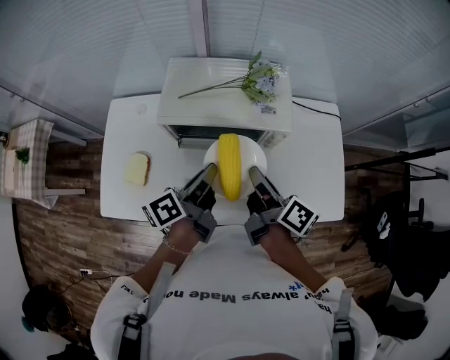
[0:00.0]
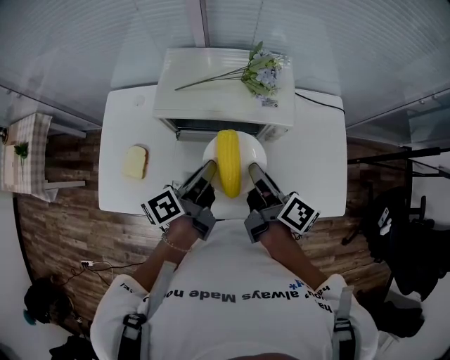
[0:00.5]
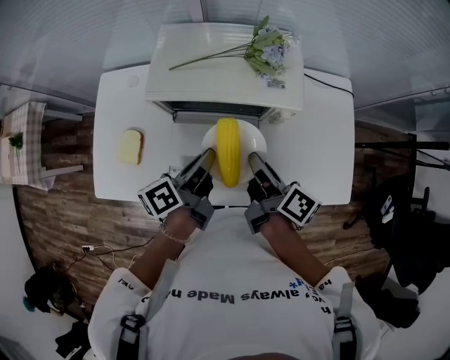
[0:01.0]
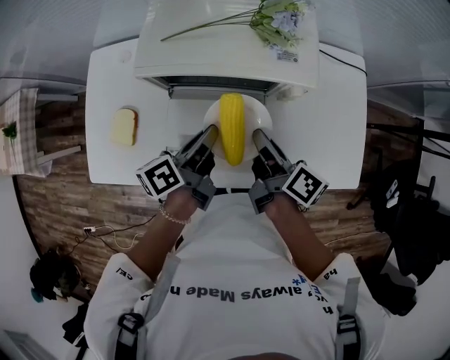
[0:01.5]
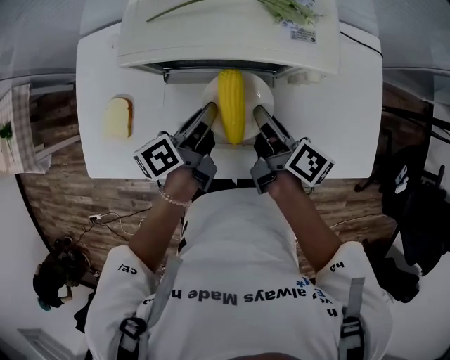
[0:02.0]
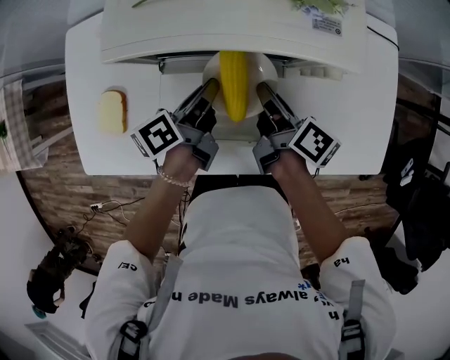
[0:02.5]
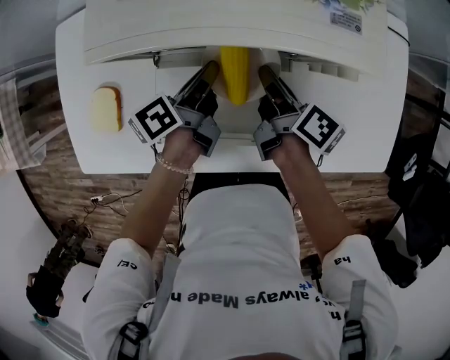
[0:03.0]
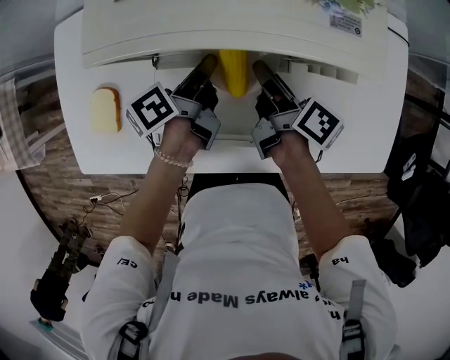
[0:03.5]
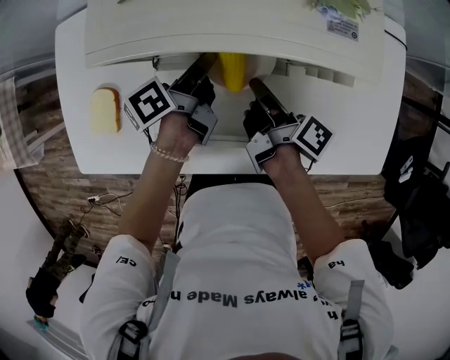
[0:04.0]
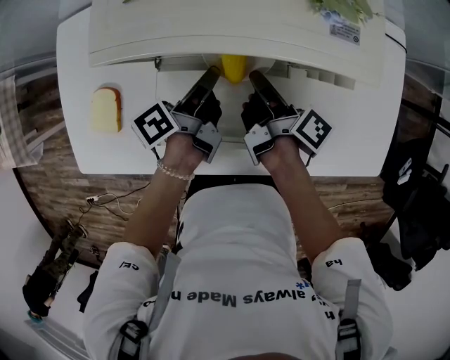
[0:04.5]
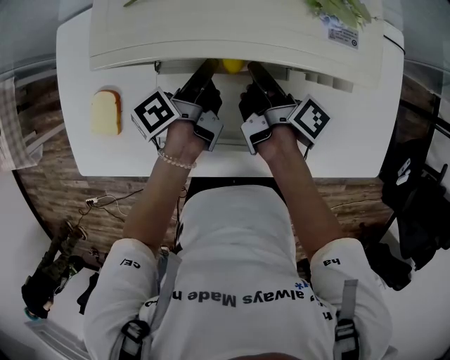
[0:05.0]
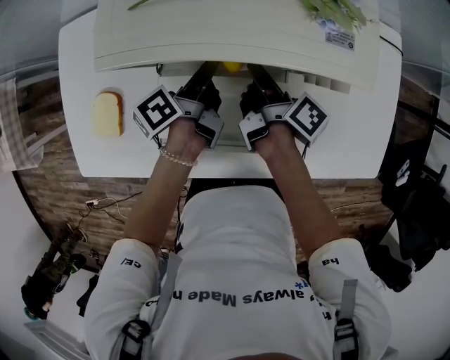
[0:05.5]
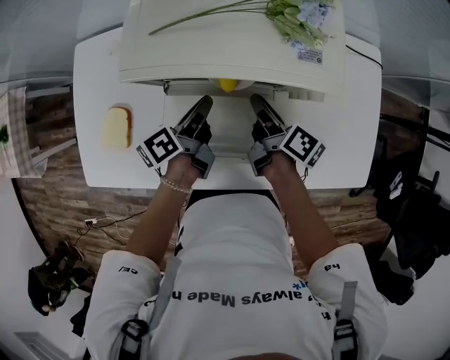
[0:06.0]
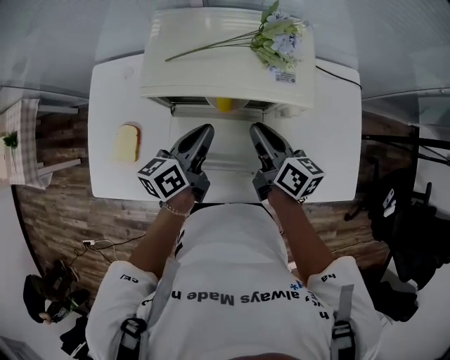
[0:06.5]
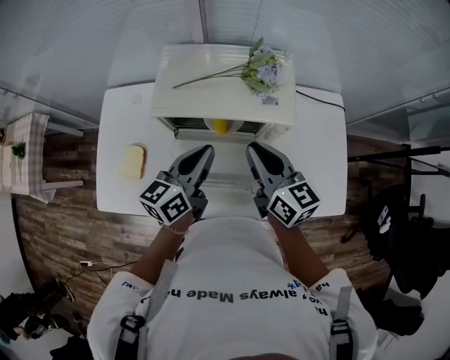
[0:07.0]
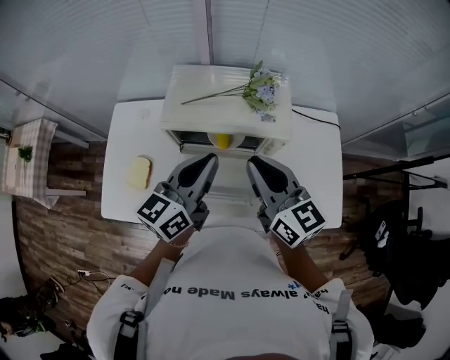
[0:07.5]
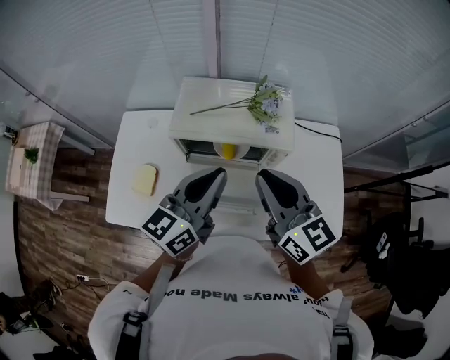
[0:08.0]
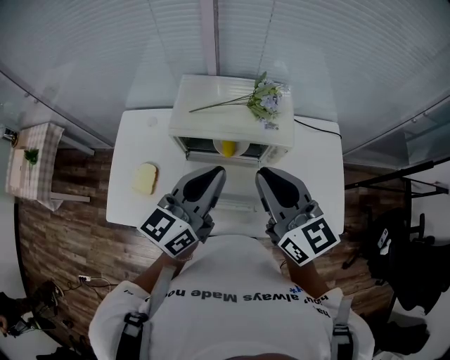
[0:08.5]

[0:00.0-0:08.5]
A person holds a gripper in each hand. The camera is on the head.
0:00.0 to 0:02.0: Both grippers travel together downward, approximately 15 cm.
0:02.0 to 0:04.0: The right gripper is displaced downward by about 10 cm, and rotates approximately 20 degrees. Meanwhile the left gripper shifts some 15 cm forward and downward.
0:04.0 to 0:06.5: The right gripper heads upward, covering approximately 15 cm, and twists about 50 degrees counterclockwise, seen from behind; the left gripper is displaced upward and backward by about 20 cm, and changes its angle by roughly 30 degrees.
0:06.5 to 0:08.5: Both grippers travel together upward, approximately 25 cm. The left gripper rotates roughly 30 degrees; the right gripper swivels approximately 40 degrees.

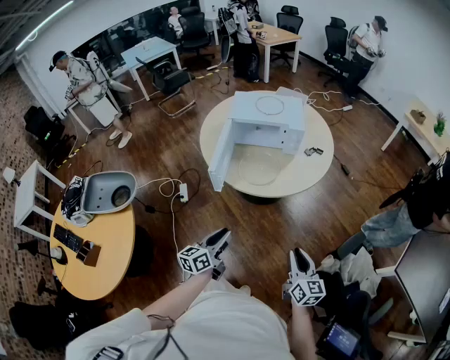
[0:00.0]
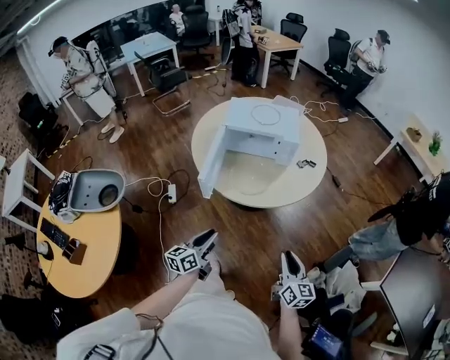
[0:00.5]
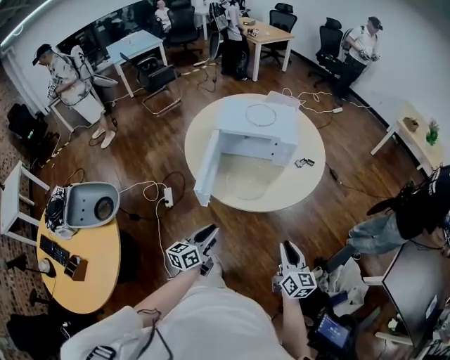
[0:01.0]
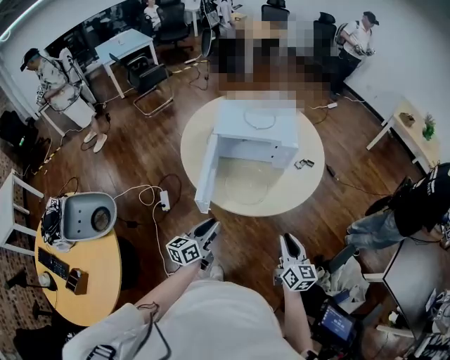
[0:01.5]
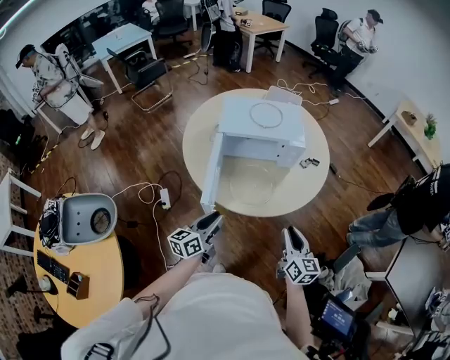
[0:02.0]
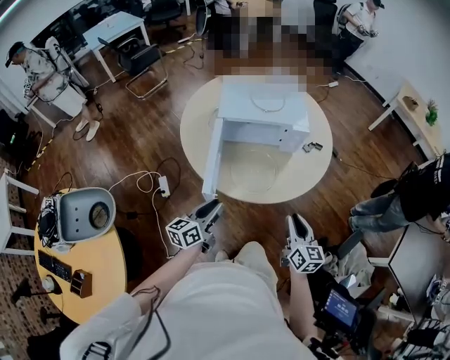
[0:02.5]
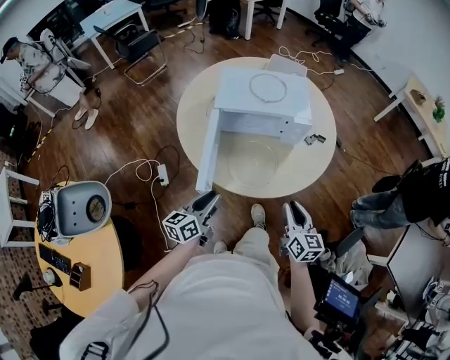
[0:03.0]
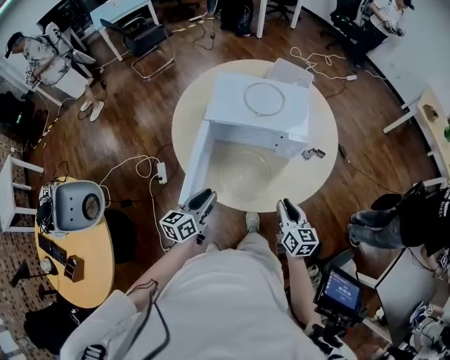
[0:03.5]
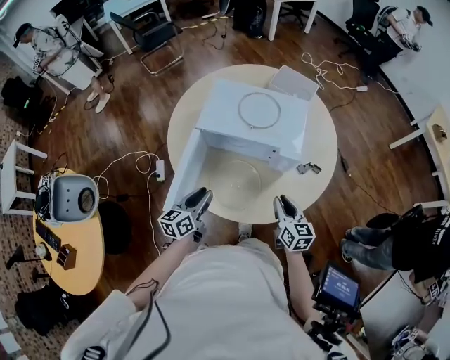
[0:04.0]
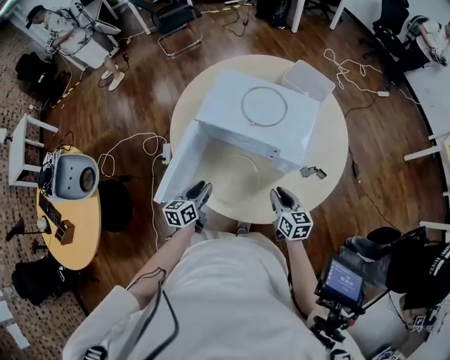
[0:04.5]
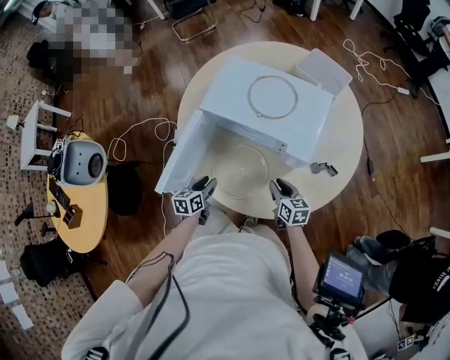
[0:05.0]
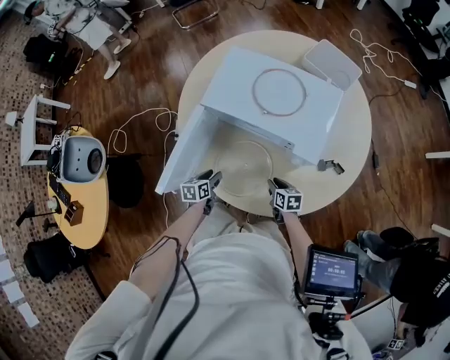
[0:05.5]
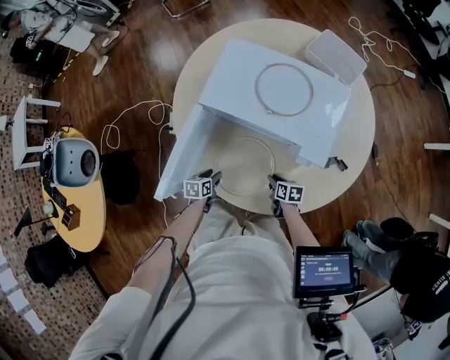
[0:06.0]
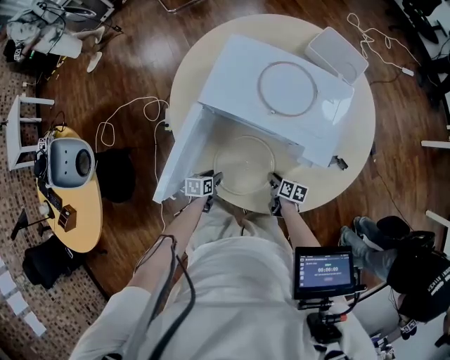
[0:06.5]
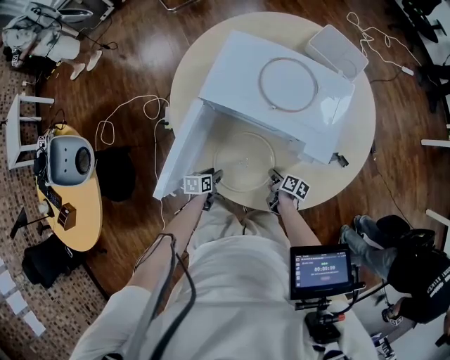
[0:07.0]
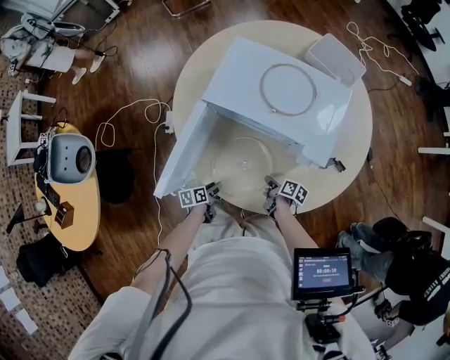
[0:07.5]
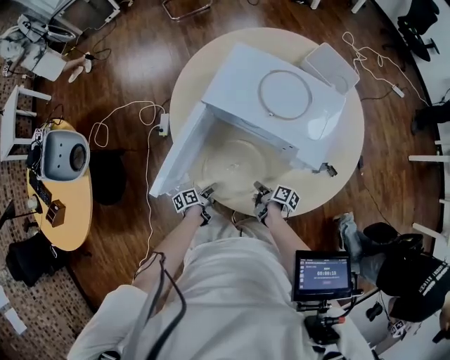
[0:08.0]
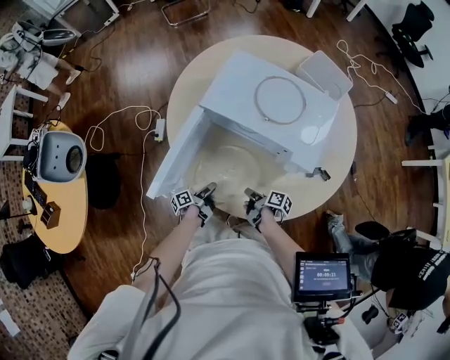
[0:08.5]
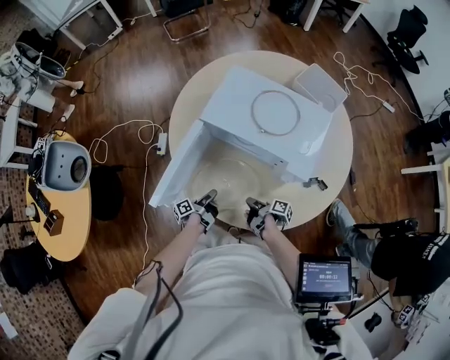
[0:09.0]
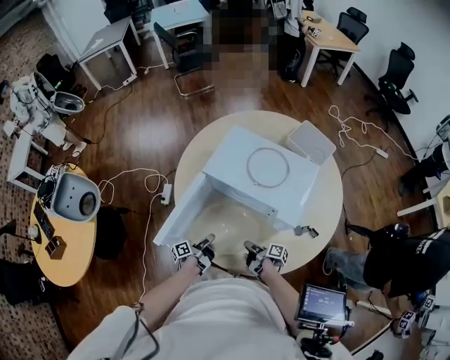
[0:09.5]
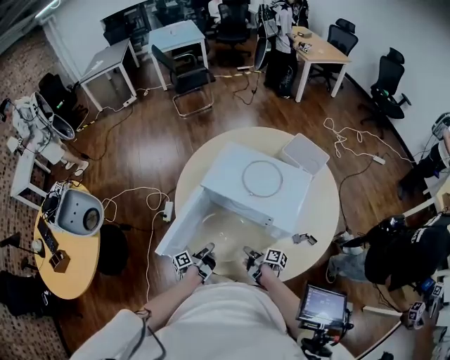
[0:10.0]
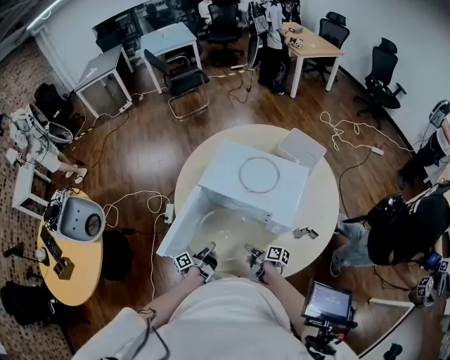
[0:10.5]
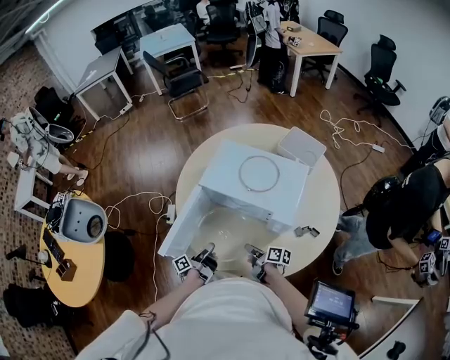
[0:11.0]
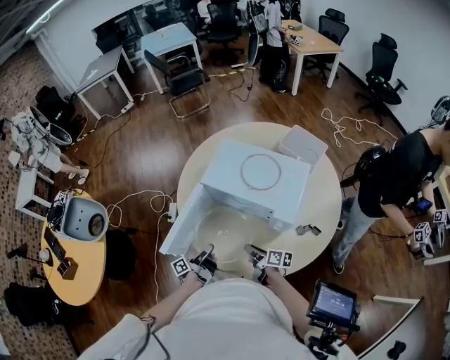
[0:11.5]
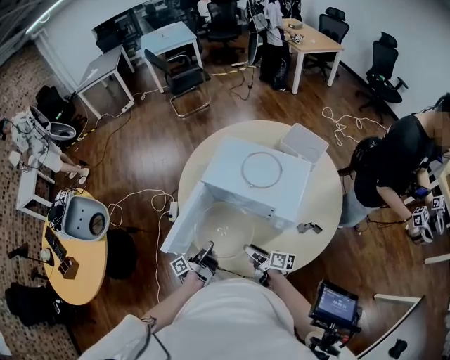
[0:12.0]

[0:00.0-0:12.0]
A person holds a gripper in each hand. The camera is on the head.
0:00.0 to 0:02.0: Both grippers travel together forward and to the left, approximately 25 cm.
0:02.0 to 0:04.0: Both grippers move forward, some 25 cm. The right gripper turns by approximately 20 degrees.
0:04.0 to 0:06.0: Both grippers move downward, roughly 30 cm. The right gripper turns by roughly 40 degrees, while the left gripper tilts its fingers approximately 40 degrees downward.
0:06.0 to 0:08.0: The left gripper goes about 5 cm backward, and twists approximately 40 degrees counterclockwise, seen from behind. Meanwhile the right gripper shifts by some 5 cm, and turns by some 40 degrees.
0:08.0 to 0:10.0: The left gripper is displaced upward by roughly 15 cm, turns by approximately 30 degrees, and closes; the right gripper is displaced upward by approximately 5 cm.
0:10.0 to 0:12.0: The two grippers go approximately 10 cm upward. The right gripper changes its angle by about 20 degrees, and opens up.

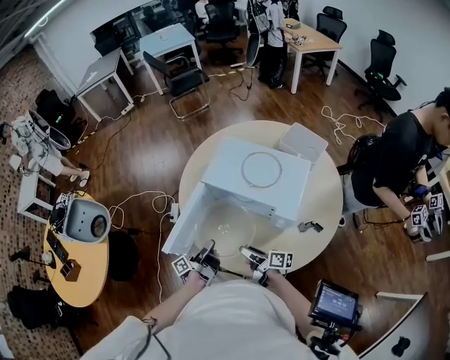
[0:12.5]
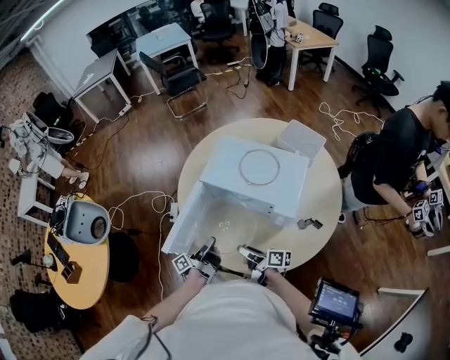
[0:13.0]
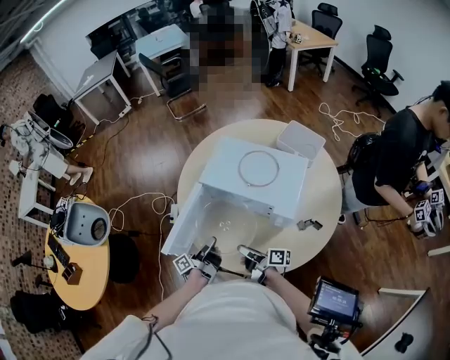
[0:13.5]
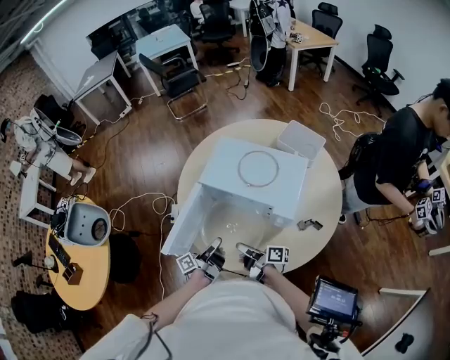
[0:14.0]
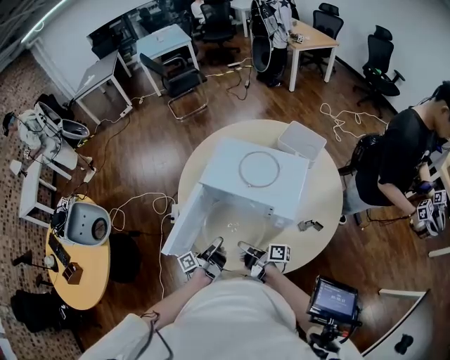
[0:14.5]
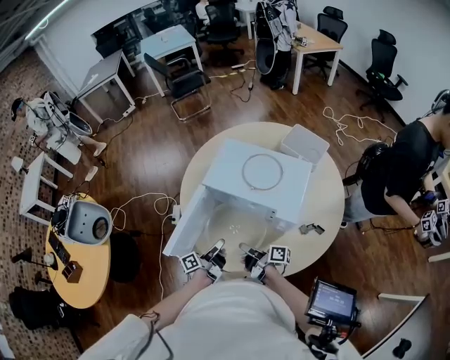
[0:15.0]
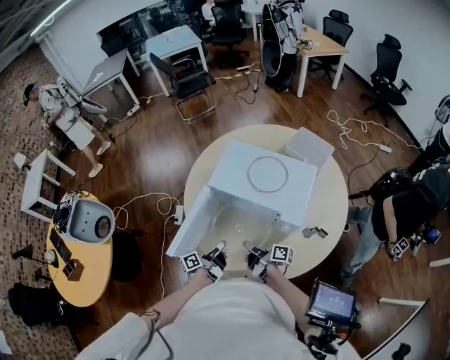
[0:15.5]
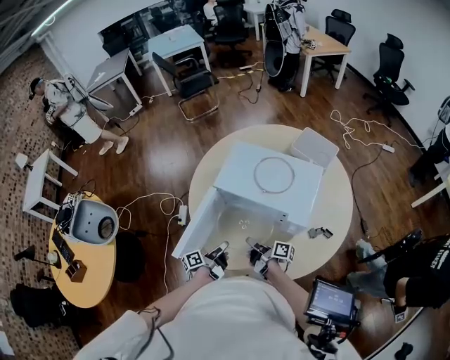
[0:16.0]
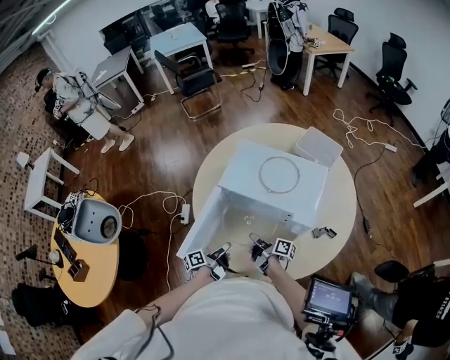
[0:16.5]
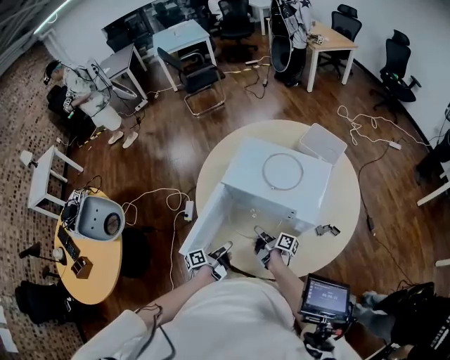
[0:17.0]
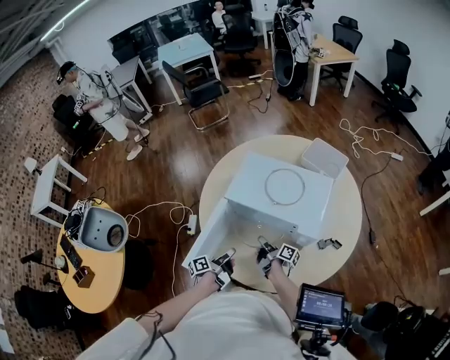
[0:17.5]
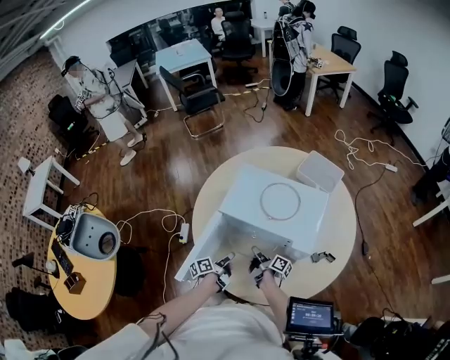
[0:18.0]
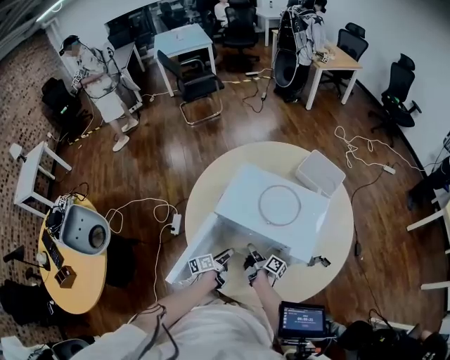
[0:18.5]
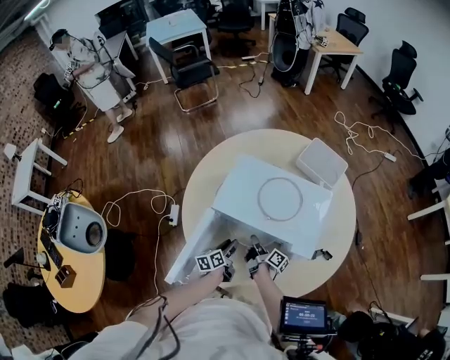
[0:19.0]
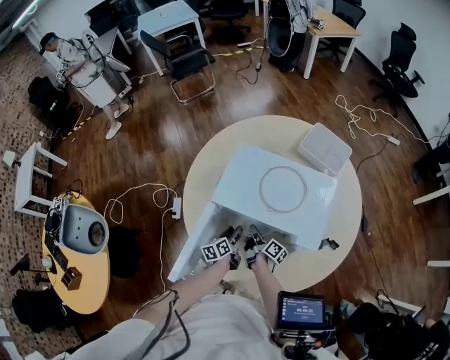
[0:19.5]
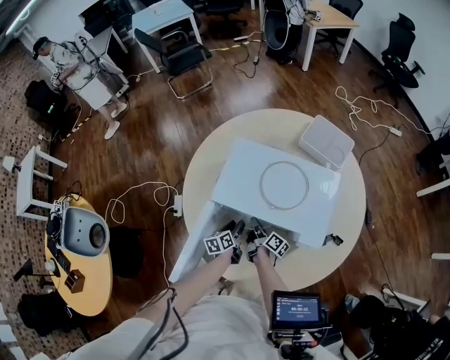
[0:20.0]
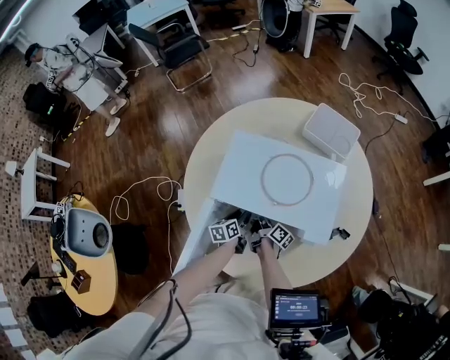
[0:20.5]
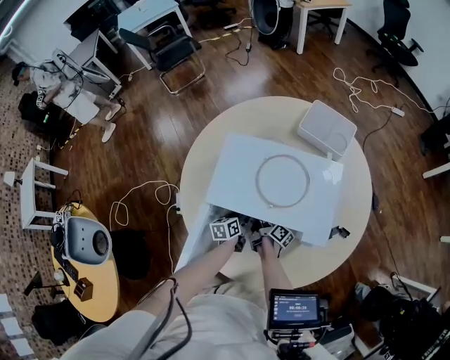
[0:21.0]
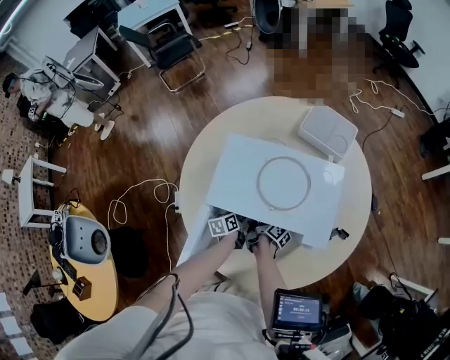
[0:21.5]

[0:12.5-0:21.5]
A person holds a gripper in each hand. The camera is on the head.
0:12.5 to 0:14.5: The right gripper closes up.
0:14.5 to 0:17.0: The left gripper shifts about 5 cm downward, while the right gripper travels forward and downward by approximately 10 cm.
0:17.0 to 0:19.5: The left gripper moves forward and downward, some 20 cm, swivels approximately 40 degrees, and opens up, while the right gripper is displaced forward and downward by some 15 cm.
0:19.5 to 0:21.5: The grippers both shift forward by some 5 cm.
